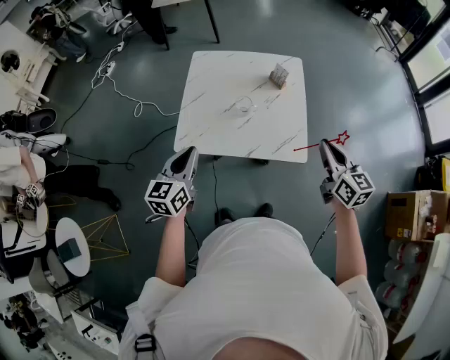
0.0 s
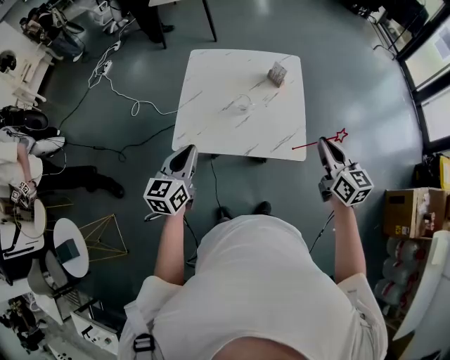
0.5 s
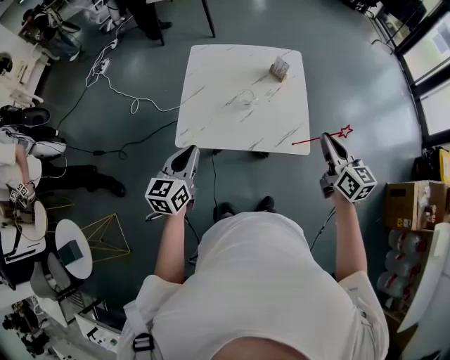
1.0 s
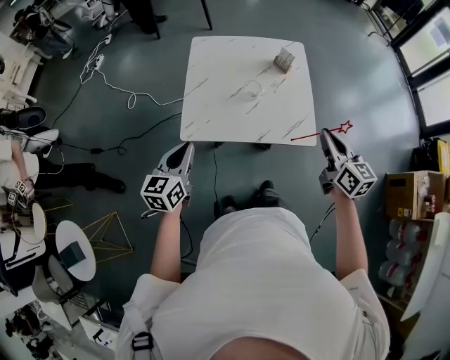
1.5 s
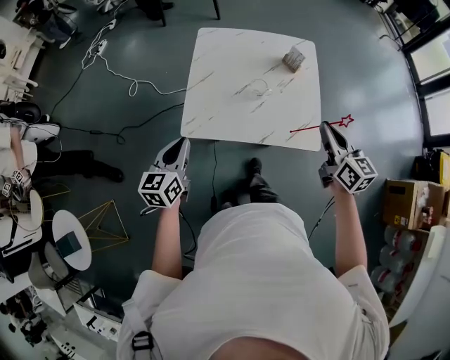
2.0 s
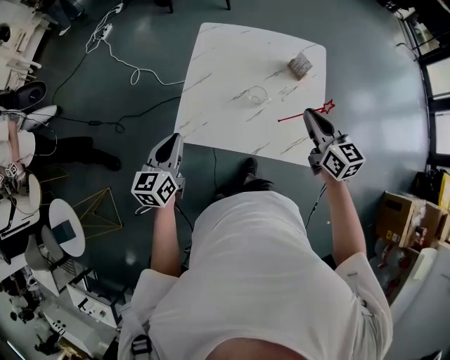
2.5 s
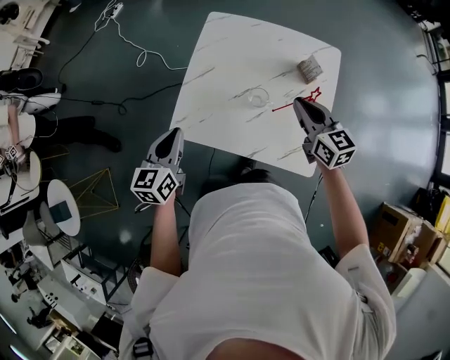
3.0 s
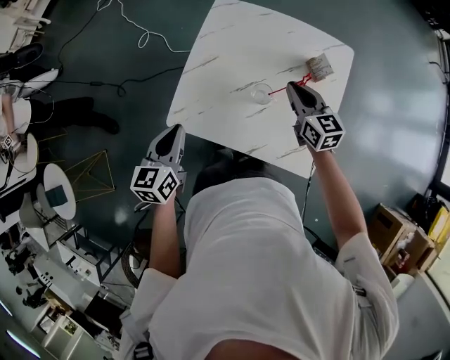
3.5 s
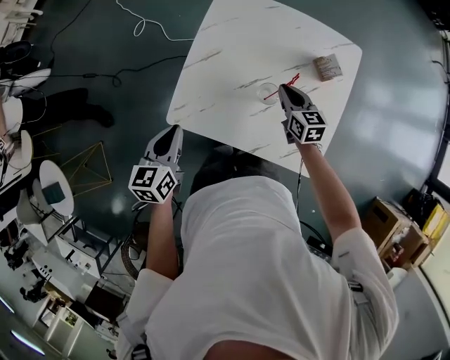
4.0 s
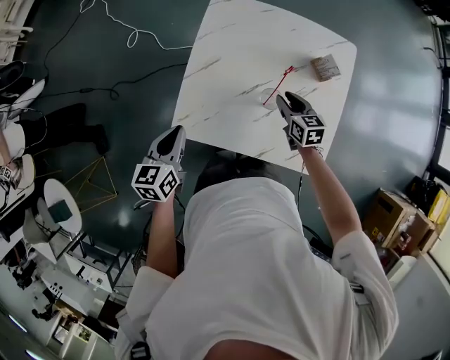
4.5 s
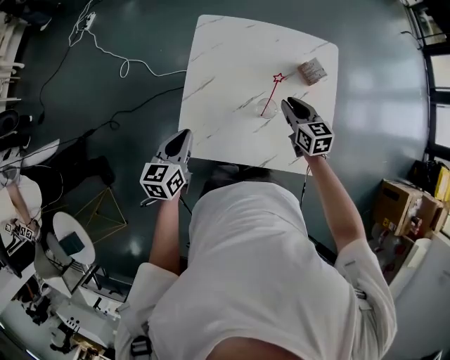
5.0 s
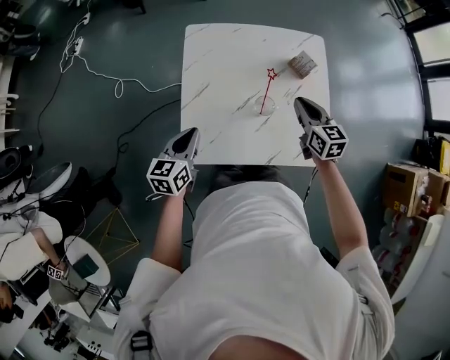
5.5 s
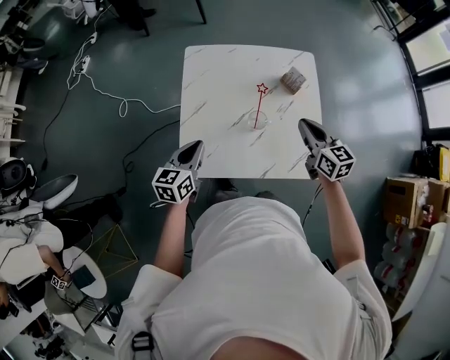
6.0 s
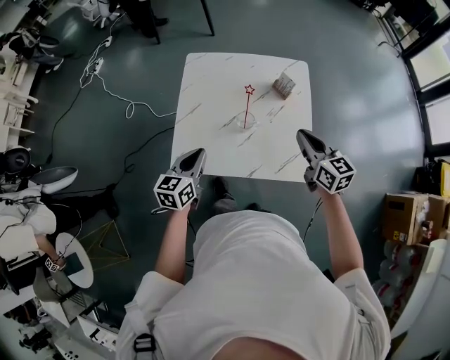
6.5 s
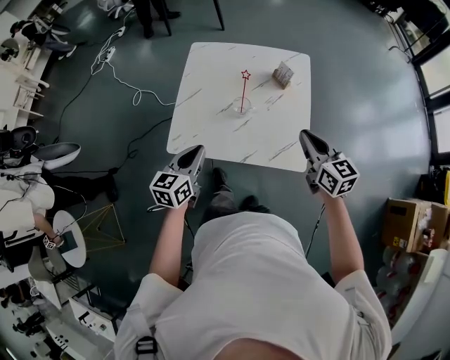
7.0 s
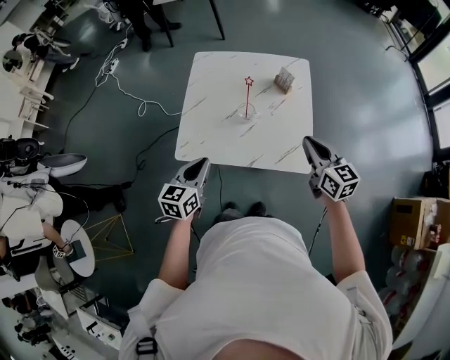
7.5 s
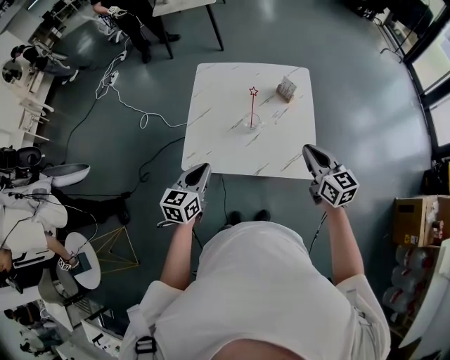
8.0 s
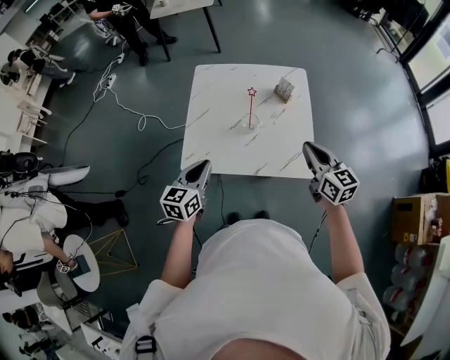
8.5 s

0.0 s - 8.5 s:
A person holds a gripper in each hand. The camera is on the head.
0.0 s - 2.0 s: The right gripper goes roughly 10 cm to the left. Meanwhile the left gripper heads to the left and downward, covering approximately 10 cm.
2.0 s - 4.0 s: The left gripper is displaced forward, downward and to the right by some 15 cm; the right gripper heads forward and downward, covering roughly 40 cm, and rotates some 30 degrees.
4.0 s - 6.5 s: The left gripper is displaced to the right by roughly 10 cm, and turns by approximately 20 degrees, while the right gripper travels upward, backward and to the right by some 30 cm, and opens, then closes once more.
6.5 s - 8.5 s: Both grippers travel together backward, some 10 cm.

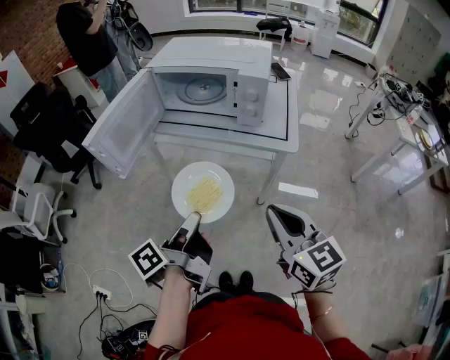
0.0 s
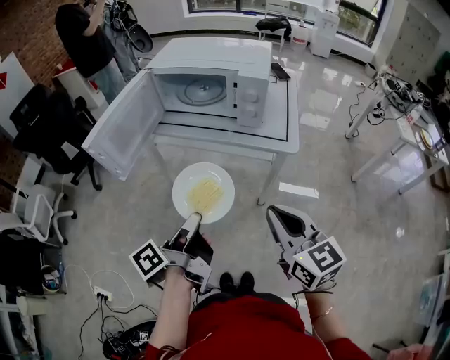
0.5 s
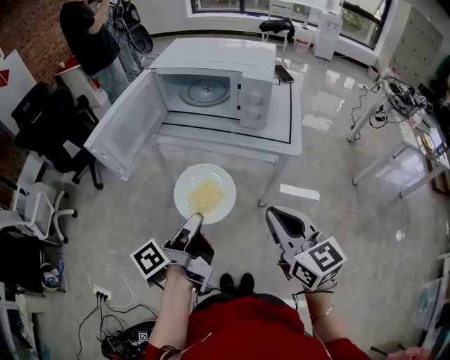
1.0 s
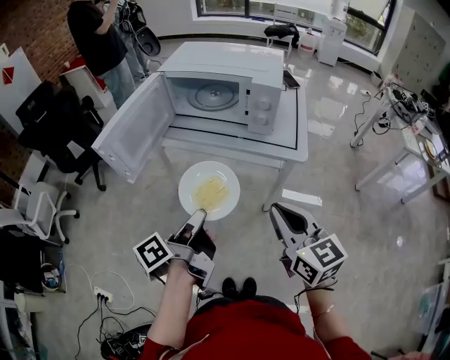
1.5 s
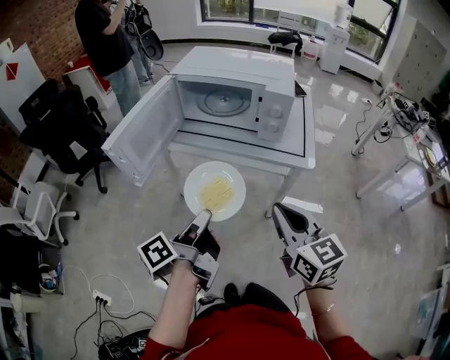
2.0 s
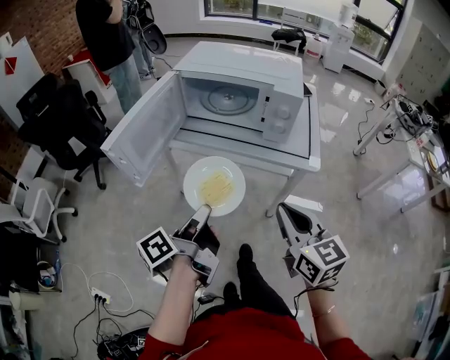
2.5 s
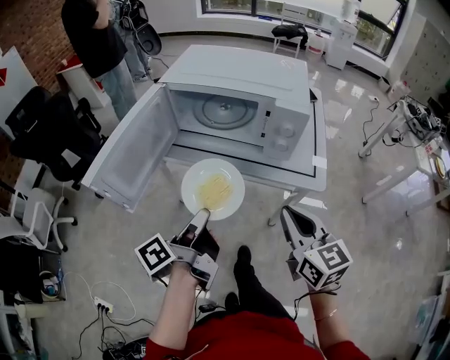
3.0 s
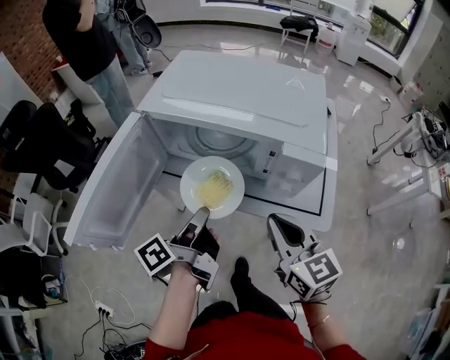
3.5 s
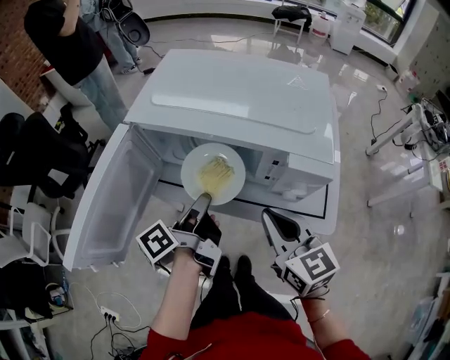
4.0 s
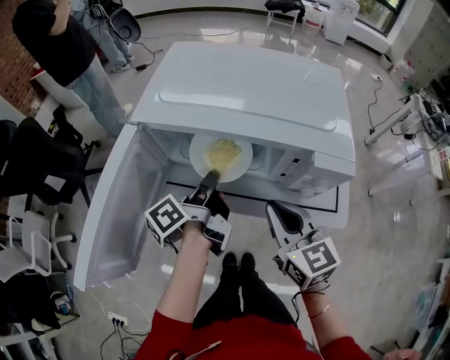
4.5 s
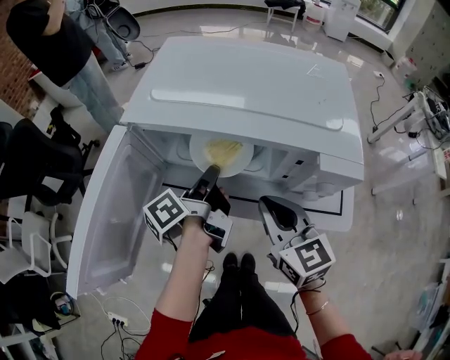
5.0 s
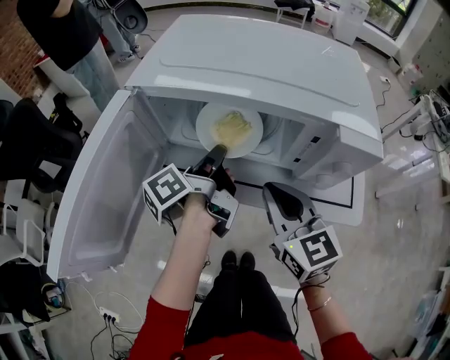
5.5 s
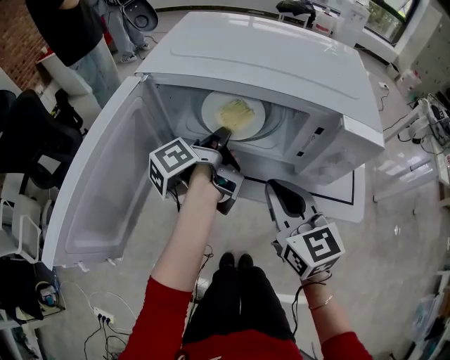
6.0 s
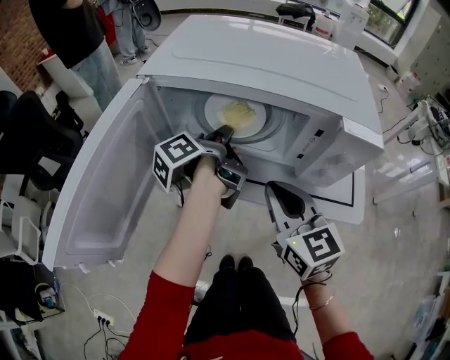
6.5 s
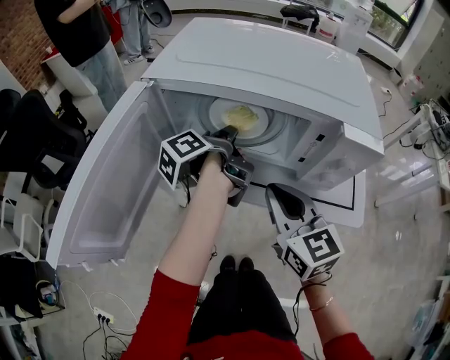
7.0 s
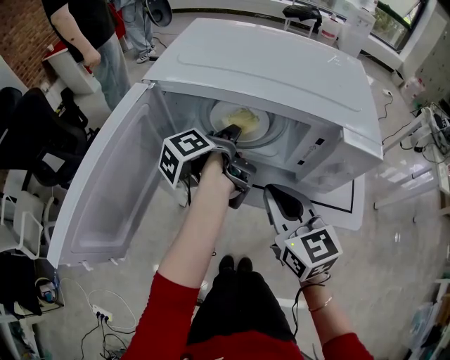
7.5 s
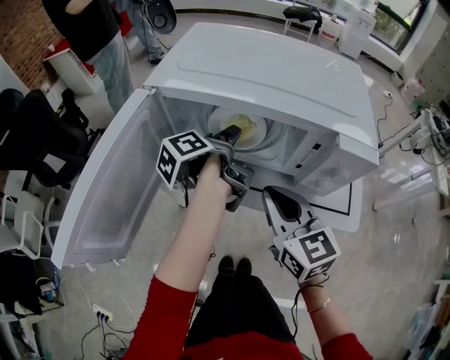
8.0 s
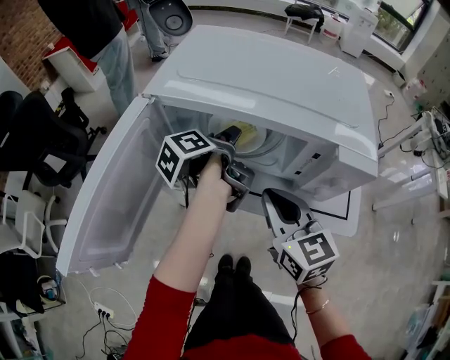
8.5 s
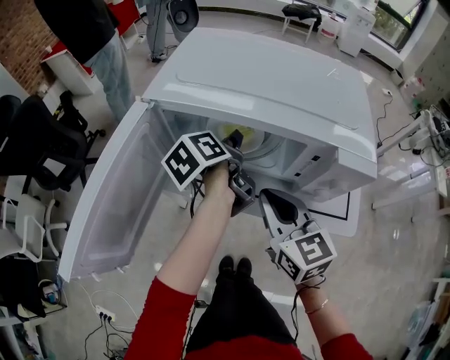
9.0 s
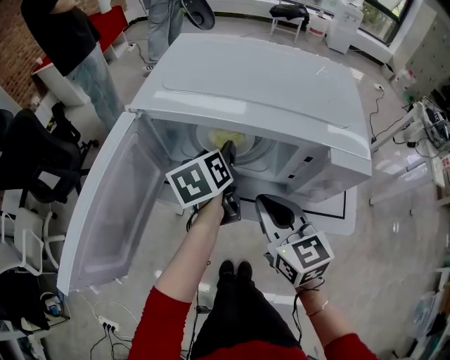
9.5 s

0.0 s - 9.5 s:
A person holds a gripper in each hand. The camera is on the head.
0.0 s - 2.0 s: The right gripper changes place by about 5 cm. Meanwhile the left gripper changes place by about 5 cm.
2.0 s - 4.0 s: Both grippers travel together forward, about 25 cm.
4.0 s - 5.5 s: The right gripper changes place by some 5 cm, while the left gripper travels forward by some 10 cm.
5.5 s - 7.5 s: The grippers move only a little.
7.5 s - 9.5 s: The left gripper rotates around the line of its fingers by approximately 50 degrees, clockwise from behind, and opens up.

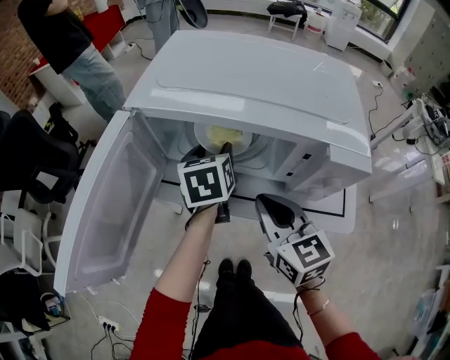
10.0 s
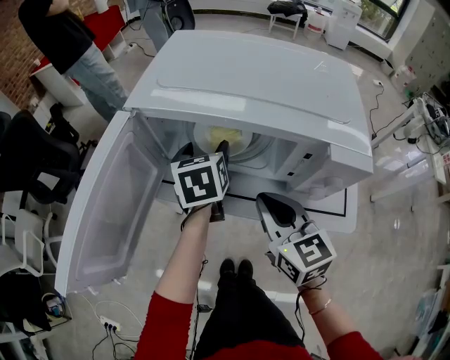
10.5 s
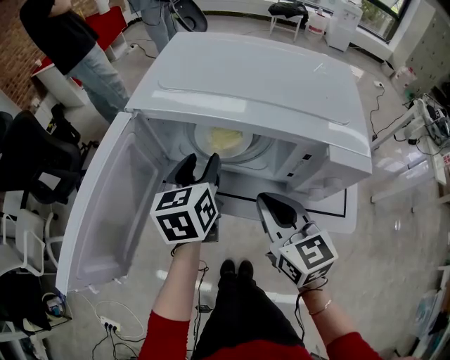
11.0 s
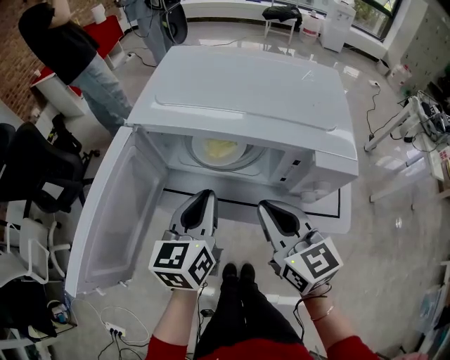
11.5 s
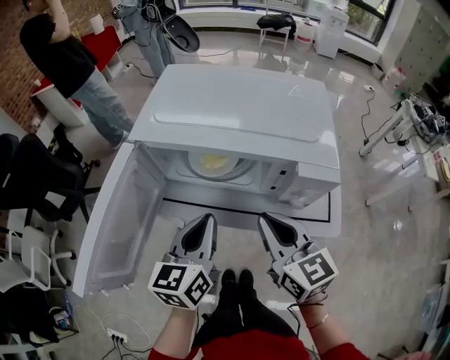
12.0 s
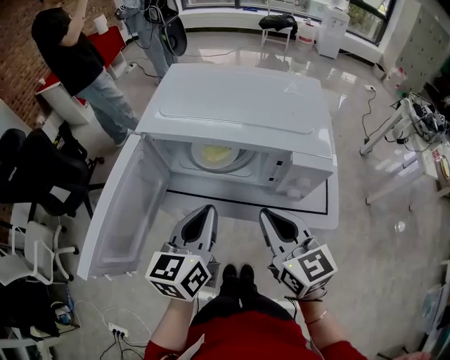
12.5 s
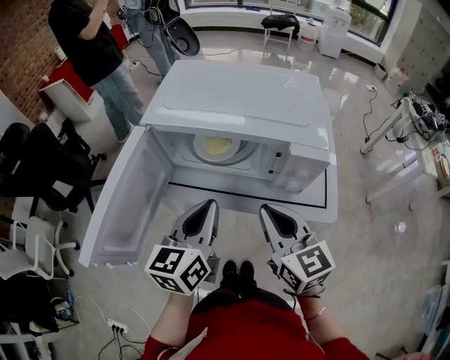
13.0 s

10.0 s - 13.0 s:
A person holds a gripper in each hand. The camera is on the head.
10.0 s - 11.5 s: The left gripper is displaced backward and upward by roughly 15 cm, rotates approximately 20 degrees, and closes up.
11.5 s - 13.0 s: The left gripper heads backward, covering about 5 cm. Meanwhile the right gripper moves about 5 cm.

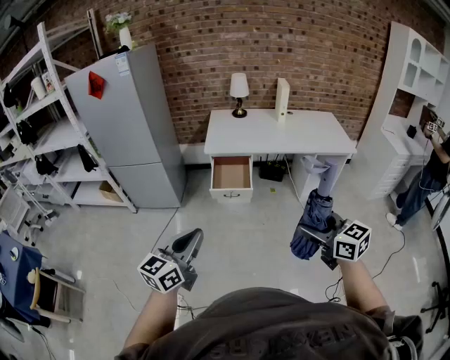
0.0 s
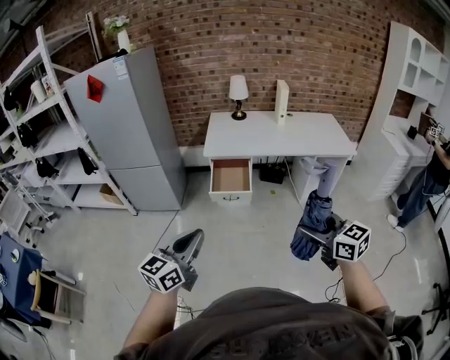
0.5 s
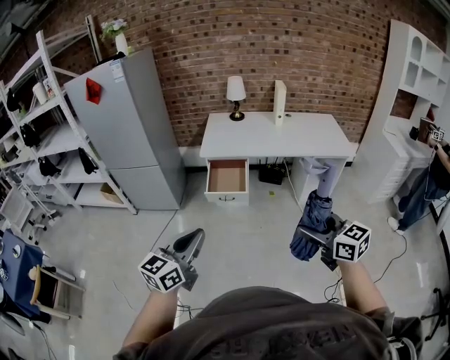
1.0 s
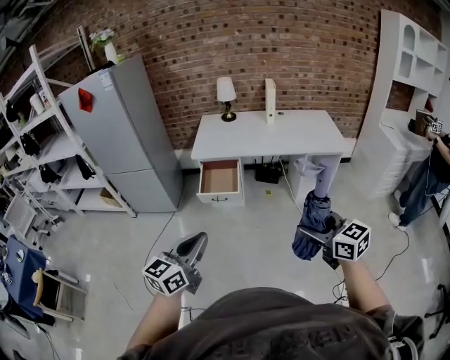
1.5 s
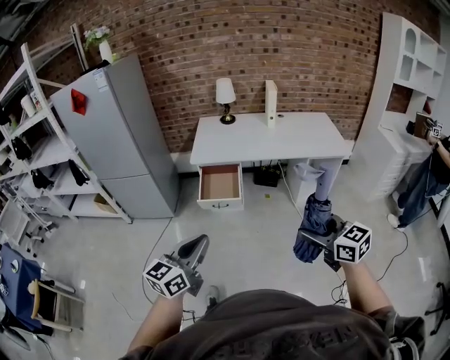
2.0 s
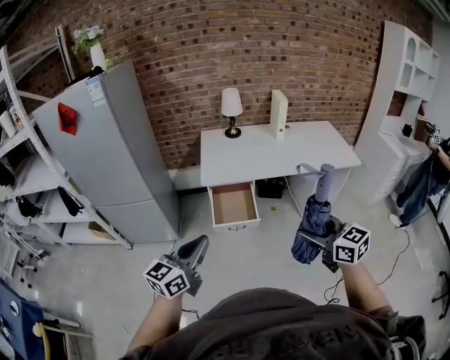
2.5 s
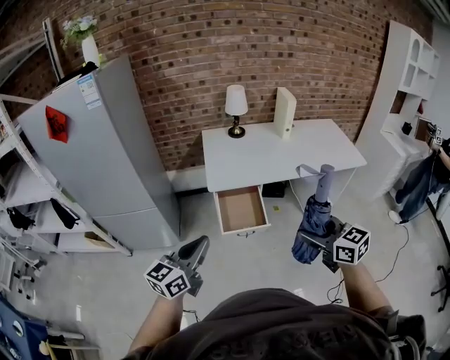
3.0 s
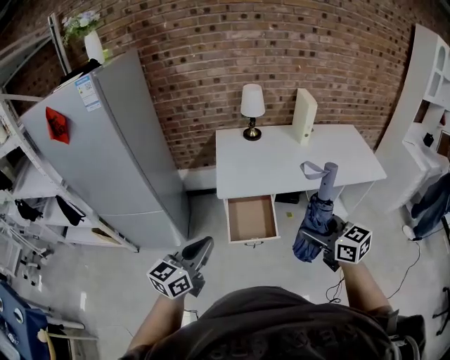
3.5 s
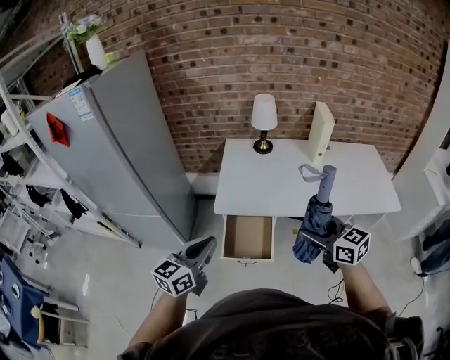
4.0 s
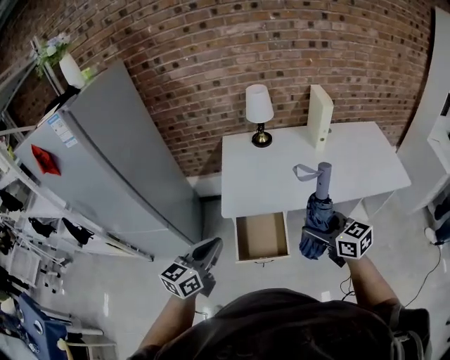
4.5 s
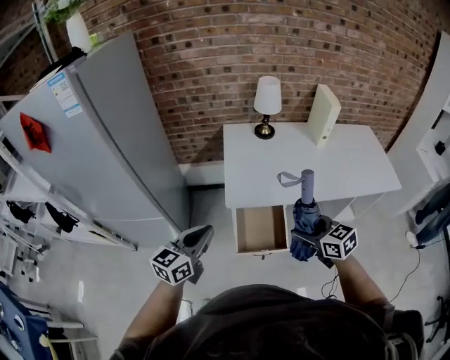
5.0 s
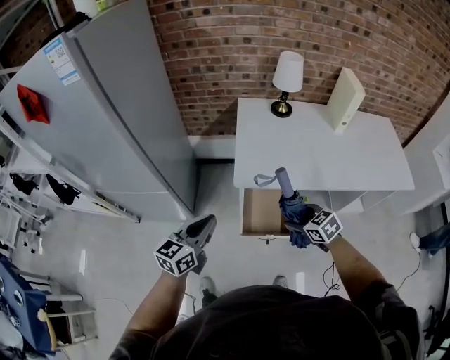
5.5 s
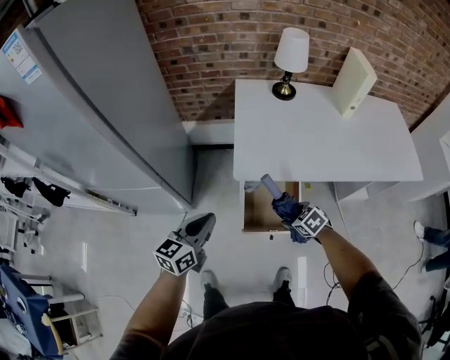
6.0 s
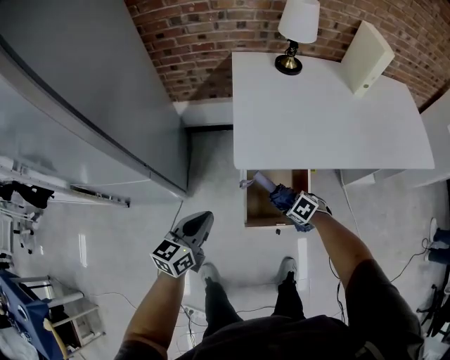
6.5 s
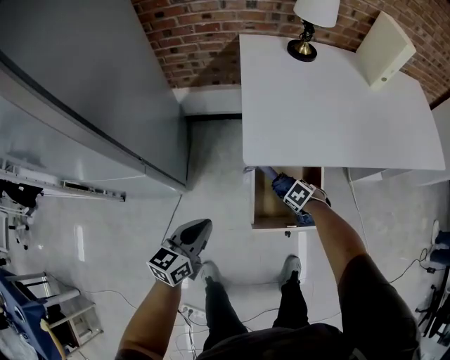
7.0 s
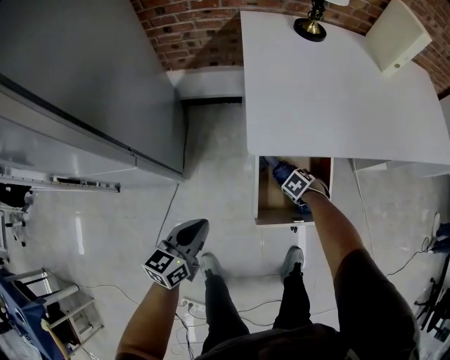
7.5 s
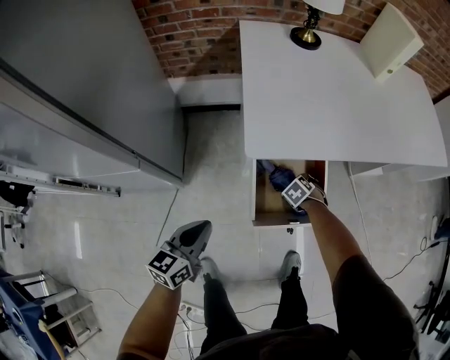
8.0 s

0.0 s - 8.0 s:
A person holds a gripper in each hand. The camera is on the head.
0.0 s - 2.0 s: Both grippers move to the right, approximately 10 cm.
2.0 s - 4.0 s: Both grippers are carried forward, some 50 cm.
4.0 s - 6.0 s: The left gripper moves downward, to the left and forward, some 25 cm, while the right gripper travels downward and to the left by approximately 40 cm, and angles its fingers downward, by about 50 degrees.
6.0 s - 8.0 s: Both grippers move downward, roughly 25 cm. The right gripper rotates roughly 20 degrees.
